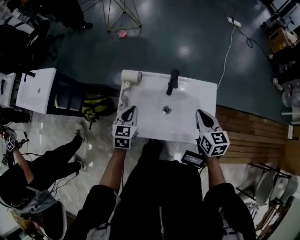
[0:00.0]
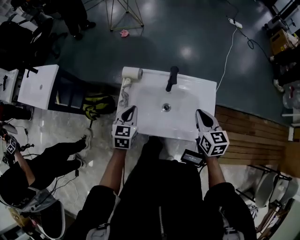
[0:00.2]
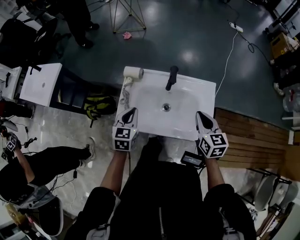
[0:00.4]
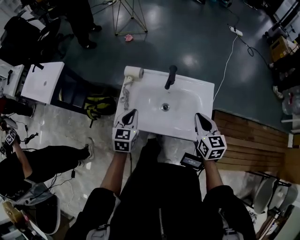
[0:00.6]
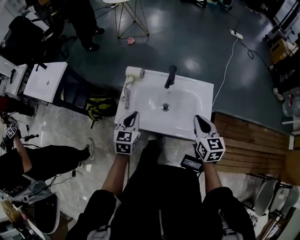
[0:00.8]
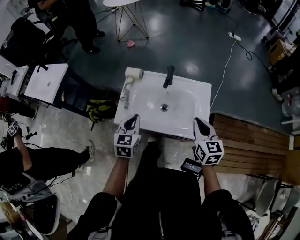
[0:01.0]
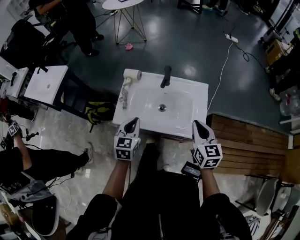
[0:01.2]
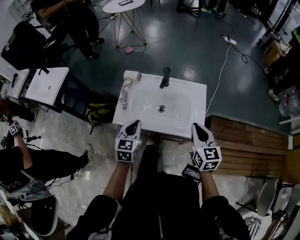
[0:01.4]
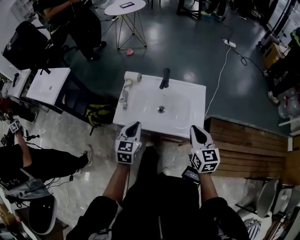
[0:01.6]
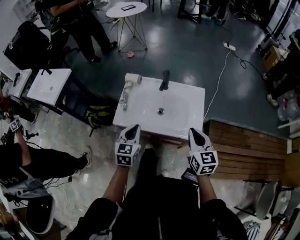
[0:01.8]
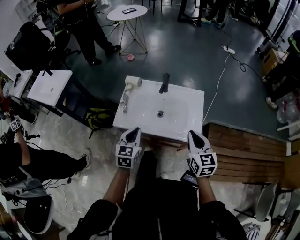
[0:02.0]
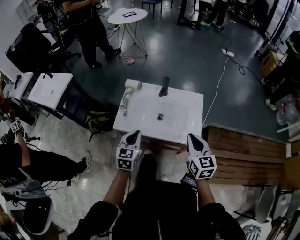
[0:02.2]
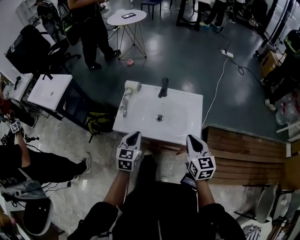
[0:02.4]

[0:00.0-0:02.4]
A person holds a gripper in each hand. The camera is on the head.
0:00.0 to 0:01.2: Both grippers move backward, some 15 cm.
0:01.2 to 0:02.4: Both grippers move backward, about 5 cm.

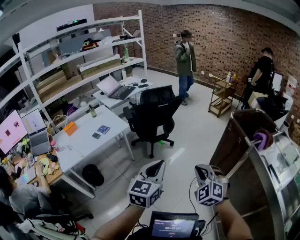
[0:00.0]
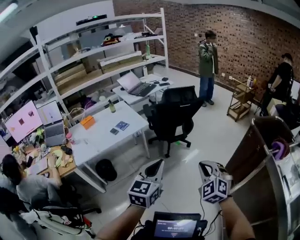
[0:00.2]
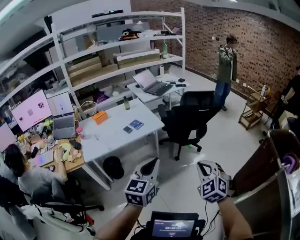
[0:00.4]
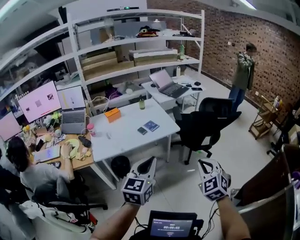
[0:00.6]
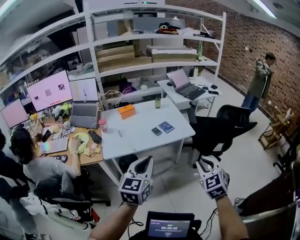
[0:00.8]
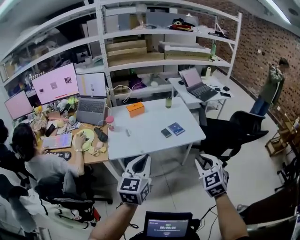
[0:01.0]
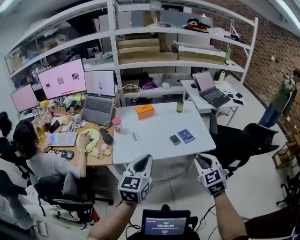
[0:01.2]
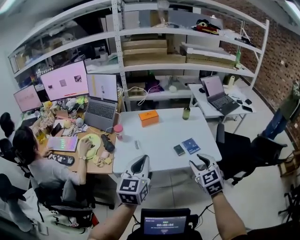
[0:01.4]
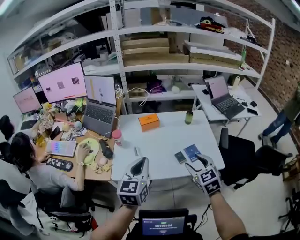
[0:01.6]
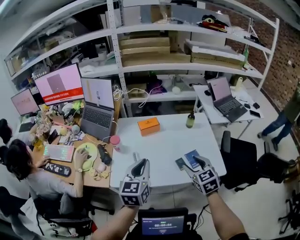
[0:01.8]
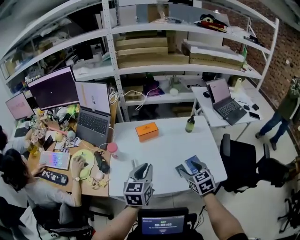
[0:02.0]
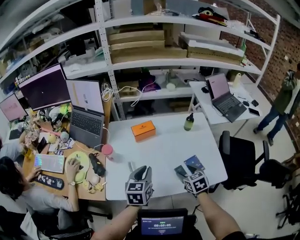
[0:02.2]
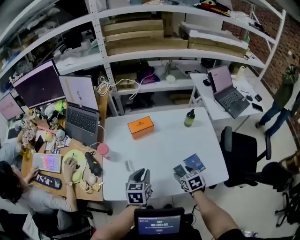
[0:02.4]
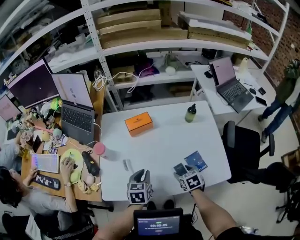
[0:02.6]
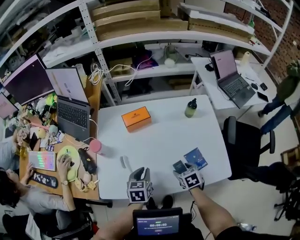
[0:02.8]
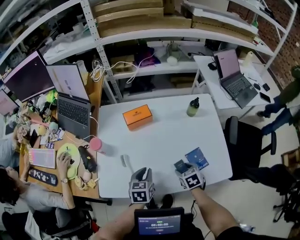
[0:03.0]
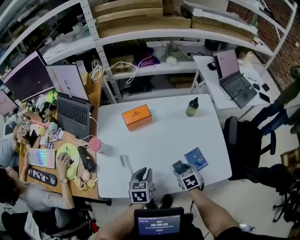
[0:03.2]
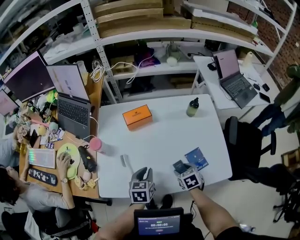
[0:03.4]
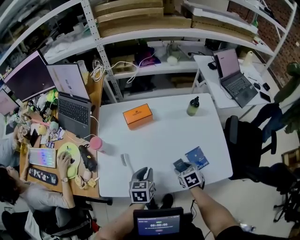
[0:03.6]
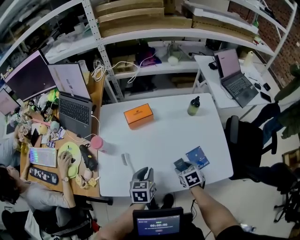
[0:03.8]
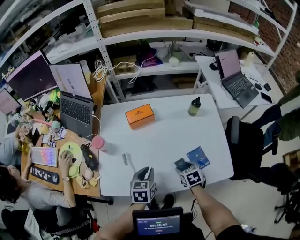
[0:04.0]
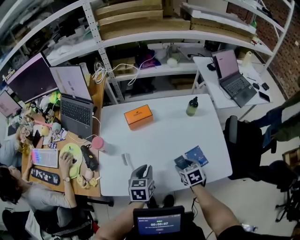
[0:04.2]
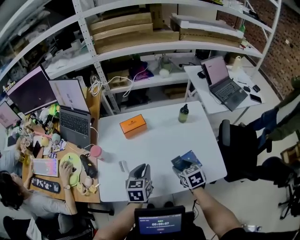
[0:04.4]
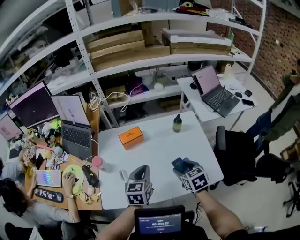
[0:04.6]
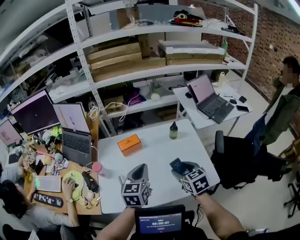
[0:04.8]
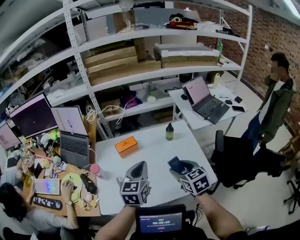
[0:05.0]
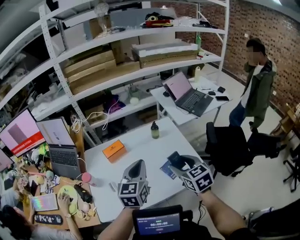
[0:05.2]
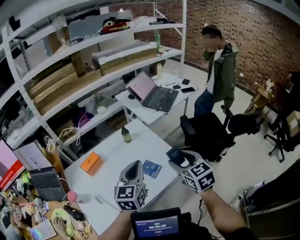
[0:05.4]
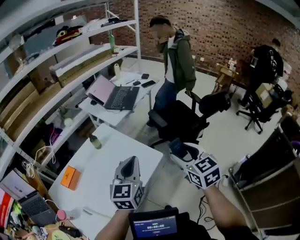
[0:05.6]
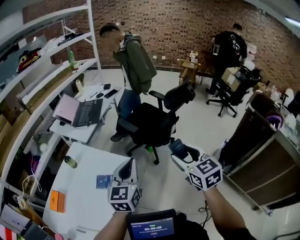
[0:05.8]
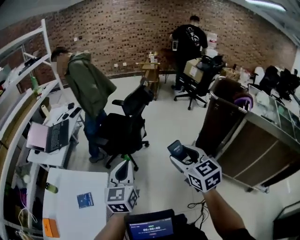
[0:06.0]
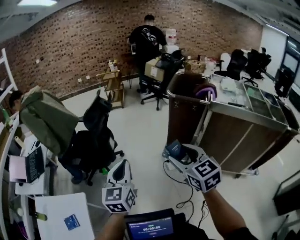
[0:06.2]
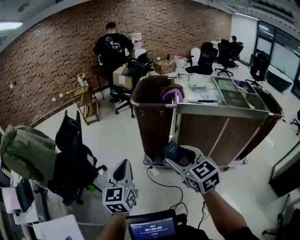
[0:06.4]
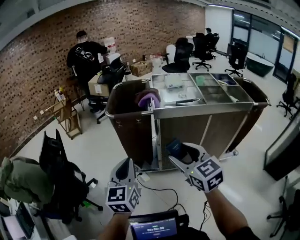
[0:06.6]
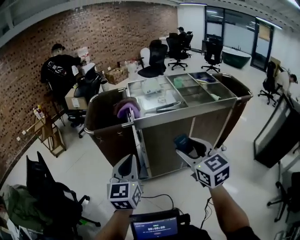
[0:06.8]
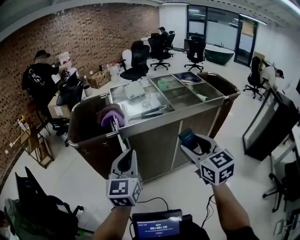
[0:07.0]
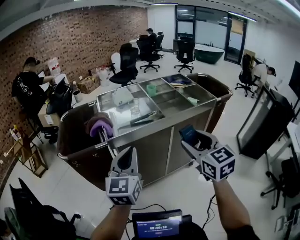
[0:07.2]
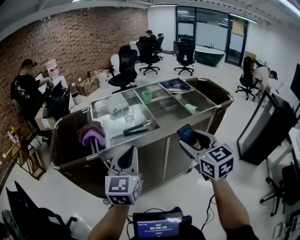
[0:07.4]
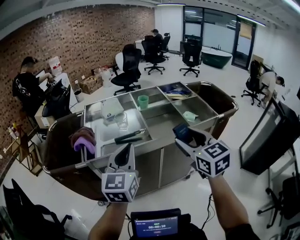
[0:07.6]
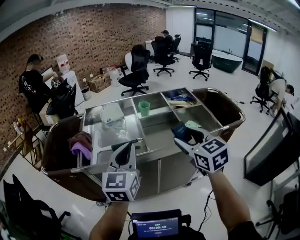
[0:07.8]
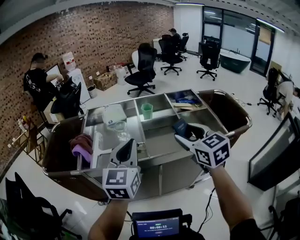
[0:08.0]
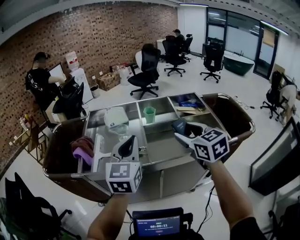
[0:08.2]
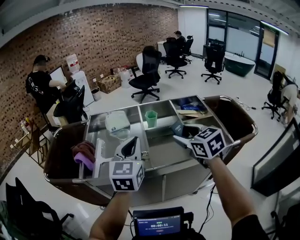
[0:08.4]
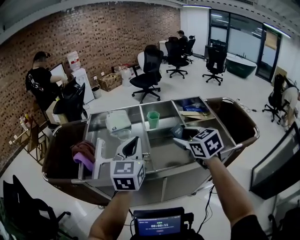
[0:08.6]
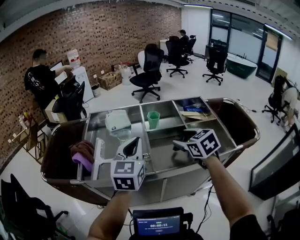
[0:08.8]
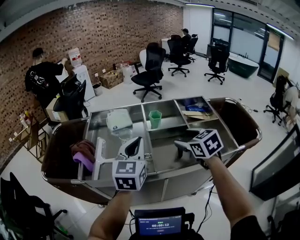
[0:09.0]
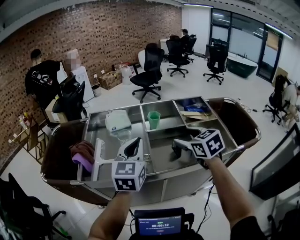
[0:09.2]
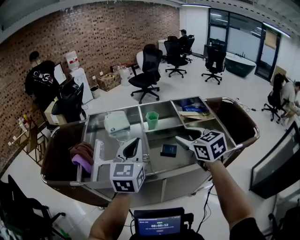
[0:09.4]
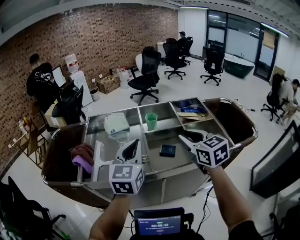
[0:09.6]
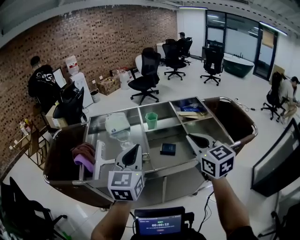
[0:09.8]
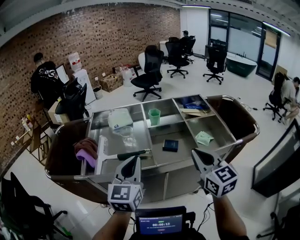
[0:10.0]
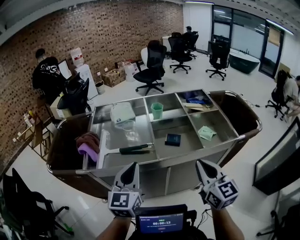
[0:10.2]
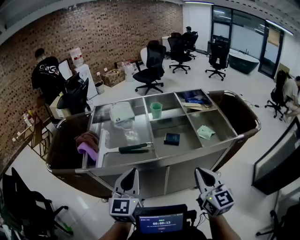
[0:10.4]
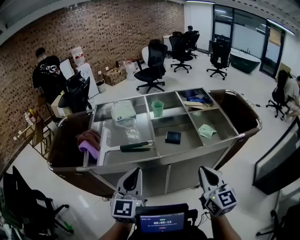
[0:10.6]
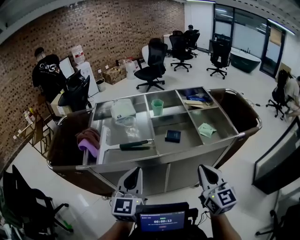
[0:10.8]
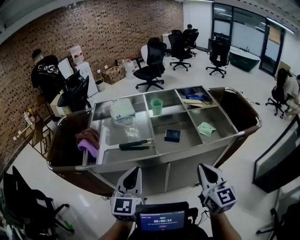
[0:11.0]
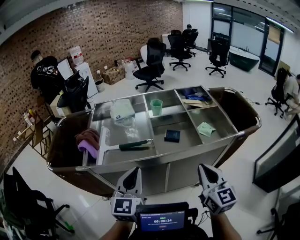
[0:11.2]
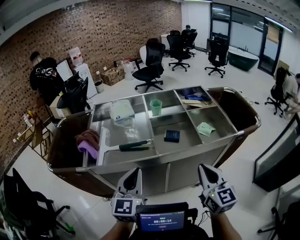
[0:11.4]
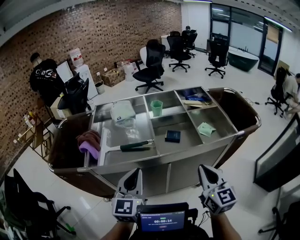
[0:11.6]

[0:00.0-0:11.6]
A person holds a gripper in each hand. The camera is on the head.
0:00.0 to 0:01.4: Both grippers are carried some 90 cm. The left gripper changes its angle by some 50 degrees, while the right gripper changes its angle by roughly 40 degrees, and opens up.
0:01.4 to 0:02.8: Both grippers are carried forward, some 40 cm. The two grippers go roughly 30 cm downward. The left gripper tips its fingers downward by about 30 degrees. The right gripper angles its fingers downward, by some 30 degrees, and opens up.
0:02.8 to 0:04.4: Both grippers move upward, about 10 cm.
0:04.4 to 0:05.8: The pair of grippers is taken some 50 cm. The left gripper changes its angle by about 70 degrees; the right gripper turns by about 70 degrees.
0:05.8 to 0:07.2: Both grippers are carried roughly 1 m. The right gripper changes its angle by approximately 80 degrees, while the left gripper turns by roughly 80 degrees.
0:07.2 to 0:08.8: Both grippers are carried forward and to the right, about 50 cm. The right gripper changes its angle by some 30 degrees.
0:08.8 to 0:10.2: The left gripper is displaced backward and downward by about 15 cm, while the right gripper goes roughly 20 cm backward, angles its fingers upward, by some 30 degrees, and closes.
0:10.2 to 0:11.6: The grippers make only small movements.

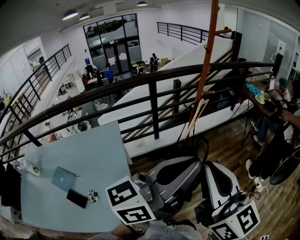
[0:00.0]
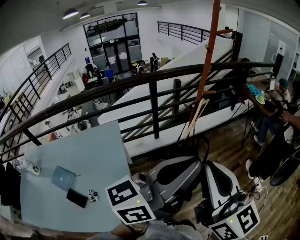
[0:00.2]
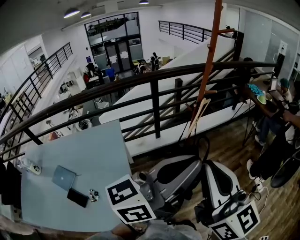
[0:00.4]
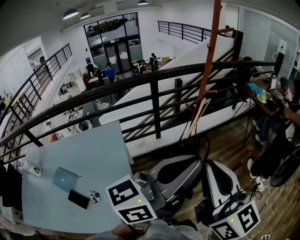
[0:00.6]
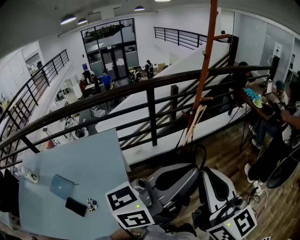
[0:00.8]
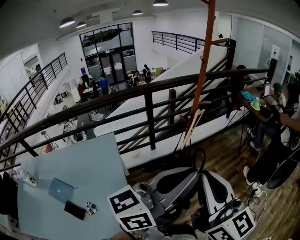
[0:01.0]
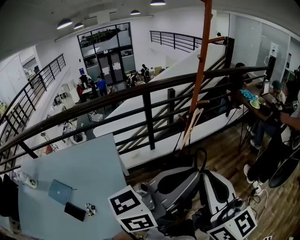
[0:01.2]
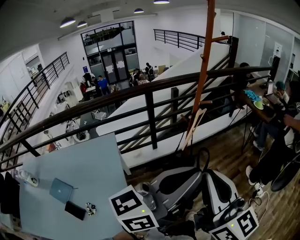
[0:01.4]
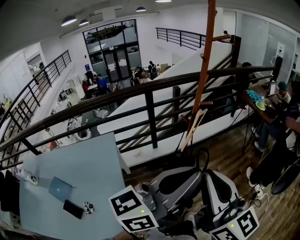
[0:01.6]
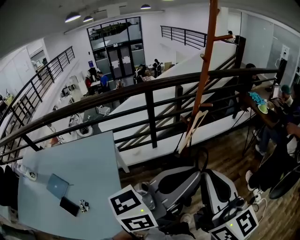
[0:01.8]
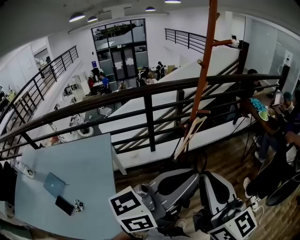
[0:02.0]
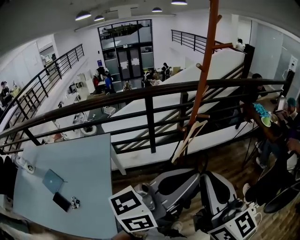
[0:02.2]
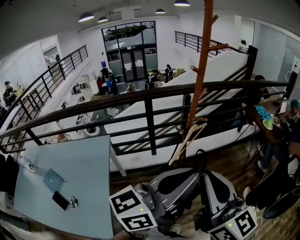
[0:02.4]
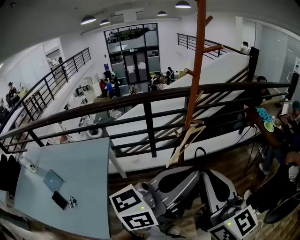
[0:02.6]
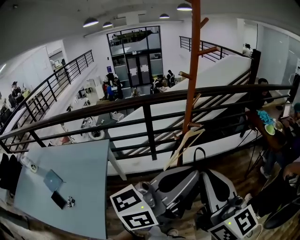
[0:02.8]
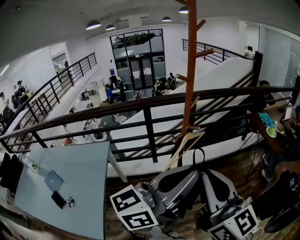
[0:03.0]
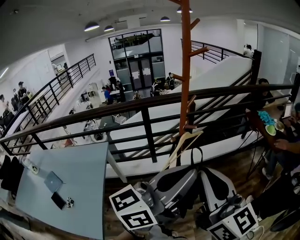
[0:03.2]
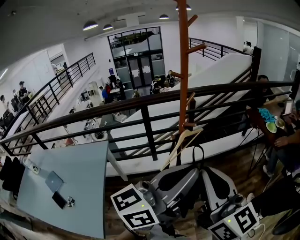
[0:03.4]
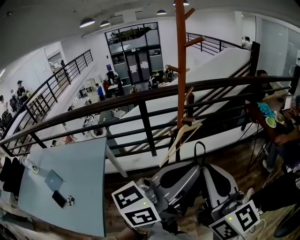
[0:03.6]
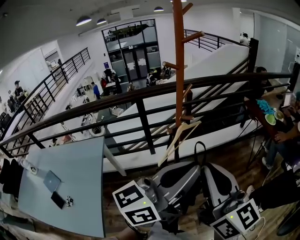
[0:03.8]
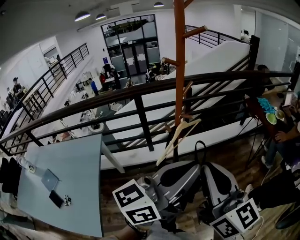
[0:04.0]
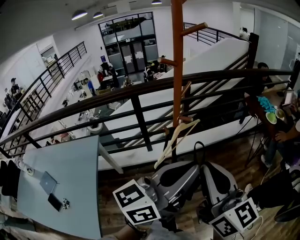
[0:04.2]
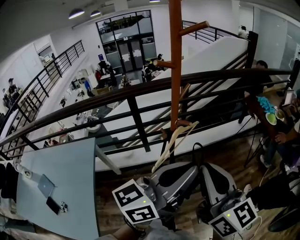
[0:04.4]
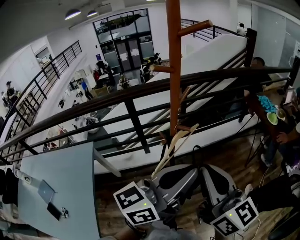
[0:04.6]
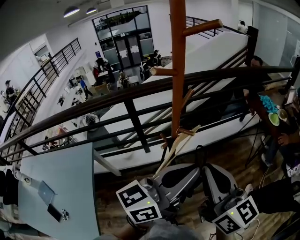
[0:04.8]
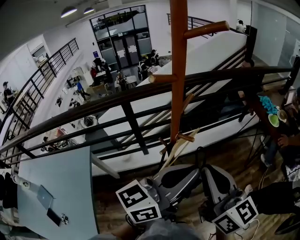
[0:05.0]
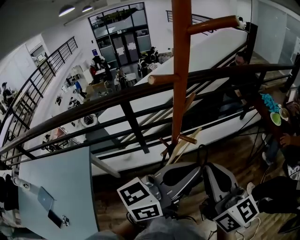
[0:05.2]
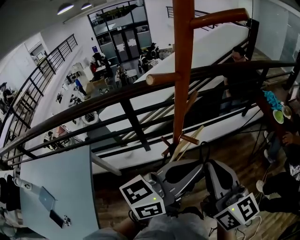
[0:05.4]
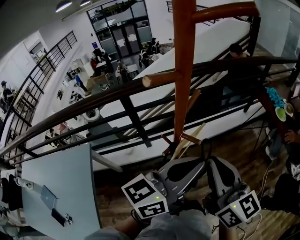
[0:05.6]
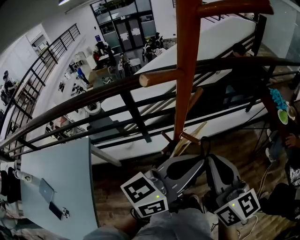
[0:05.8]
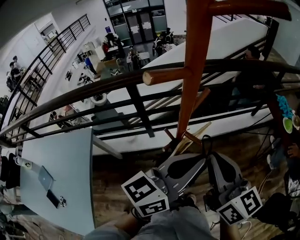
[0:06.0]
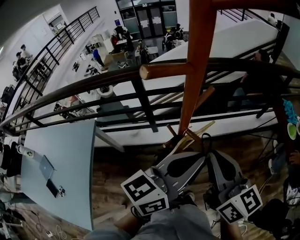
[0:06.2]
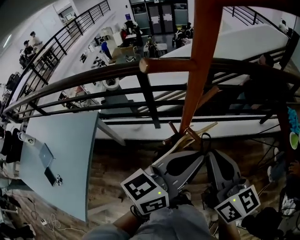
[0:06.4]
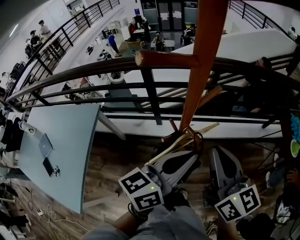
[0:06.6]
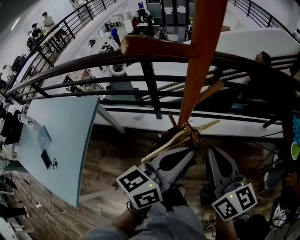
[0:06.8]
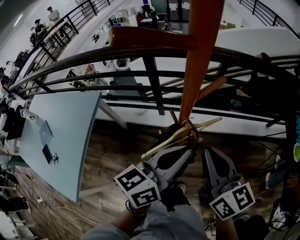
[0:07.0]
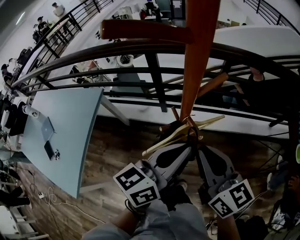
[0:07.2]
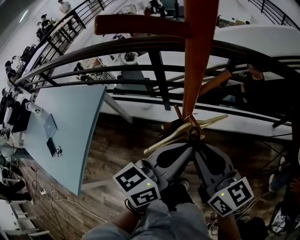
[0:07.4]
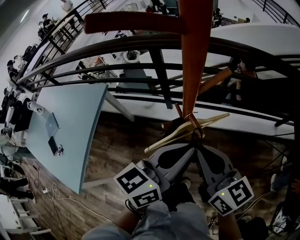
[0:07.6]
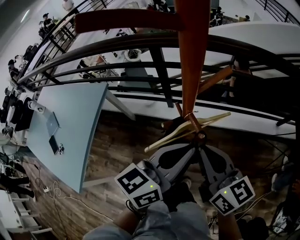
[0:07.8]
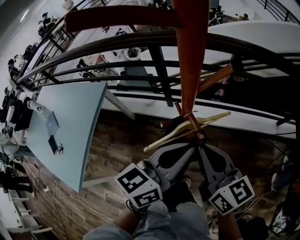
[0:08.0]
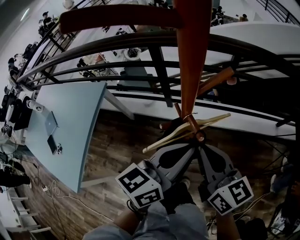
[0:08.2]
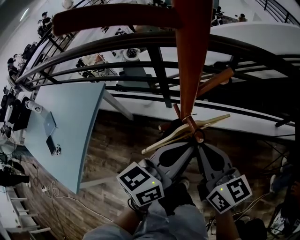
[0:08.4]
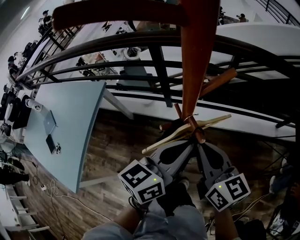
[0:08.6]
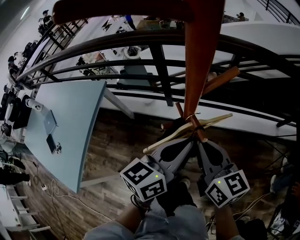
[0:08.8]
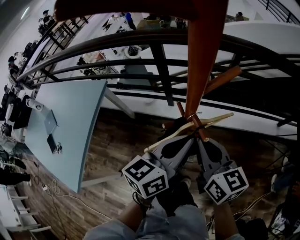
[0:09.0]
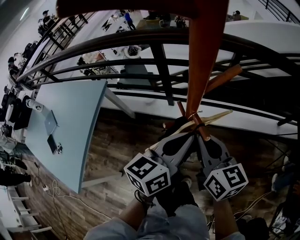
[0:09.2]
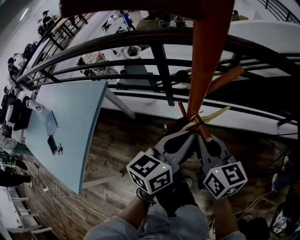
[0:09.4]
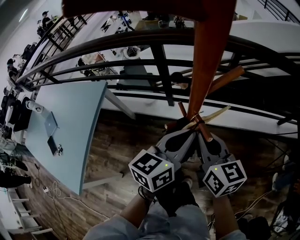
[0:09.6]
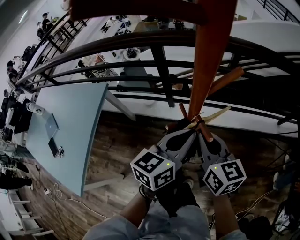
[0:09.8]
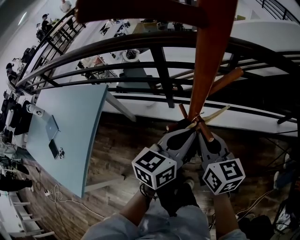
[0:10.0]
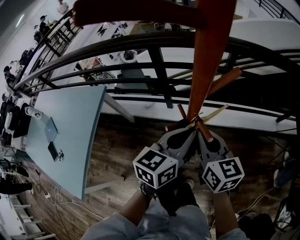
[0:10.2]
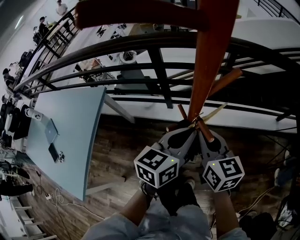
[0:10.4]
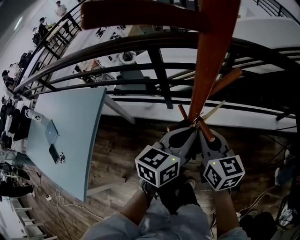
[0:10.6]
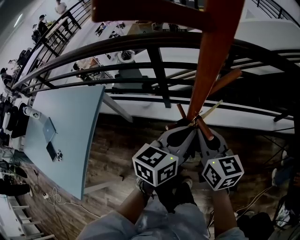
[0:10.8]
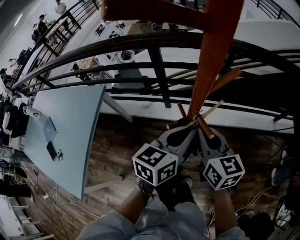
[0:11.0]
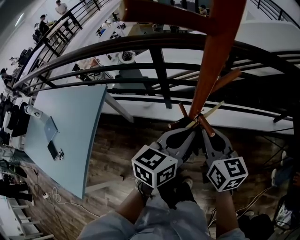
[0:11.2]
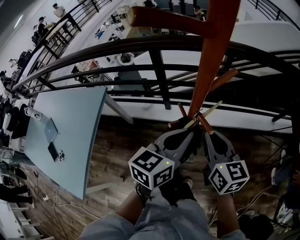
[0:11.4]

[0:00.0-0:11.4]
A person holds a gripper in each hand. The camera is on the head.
0:00.0 to 0:01.4: The grippers move only a little.
0:01.4 to 0:02.8: Both grippers move forward and to the right, about 20 cm.
0:02.8 to 0:04.2: The grippers both shift forward by approximately 10 cm.
0:04.2 to 0:05.6: The two grippers go roughly 15 cm forward.
0:05.6 to 0:07.2: The two grippers go some 10 cm downward. The right gripper rotates roughly 30 degrees. Meanwhile the left gripper turns by about 30 degrees.
0:07.2 to 0:08.6: The left gripper moves about 5 cm. The right gripper shifts about 5 cm downward.
0:08.6 to 0:10.0: The left gripper ends up some 5 cm from where it was. Meanwhile the right gripper moves roughly 5 cm.
0:10.0 to 0:11.4: The grippers stay close to where they were, moving slightly.
